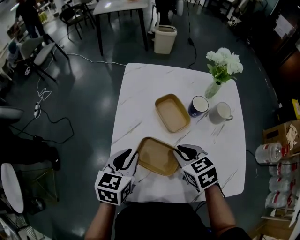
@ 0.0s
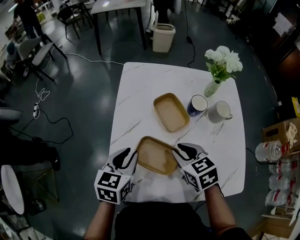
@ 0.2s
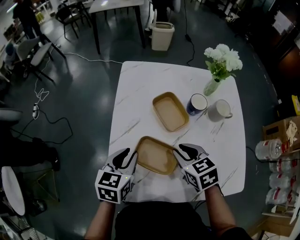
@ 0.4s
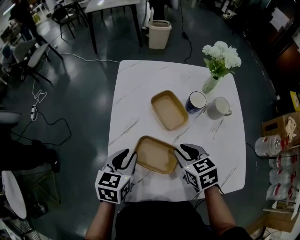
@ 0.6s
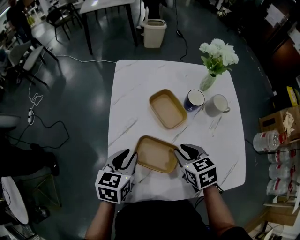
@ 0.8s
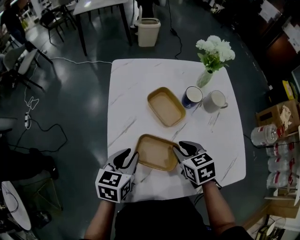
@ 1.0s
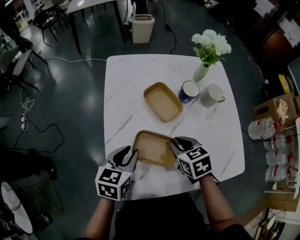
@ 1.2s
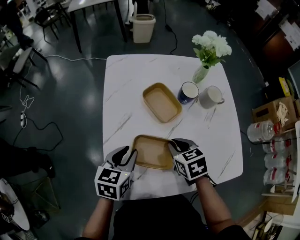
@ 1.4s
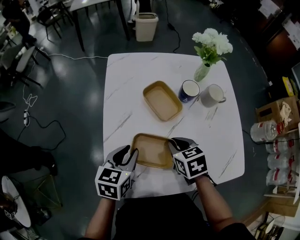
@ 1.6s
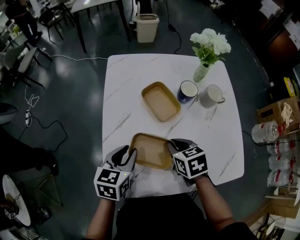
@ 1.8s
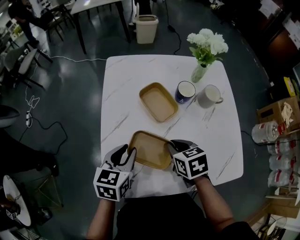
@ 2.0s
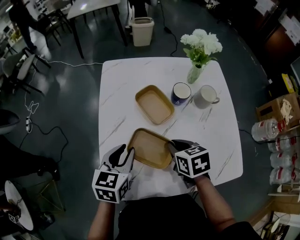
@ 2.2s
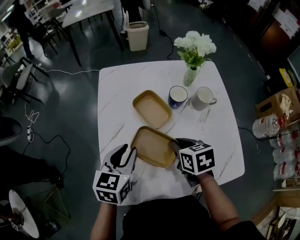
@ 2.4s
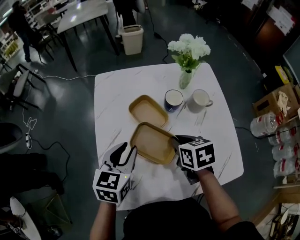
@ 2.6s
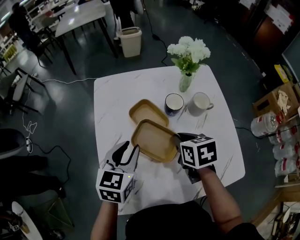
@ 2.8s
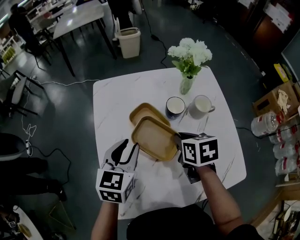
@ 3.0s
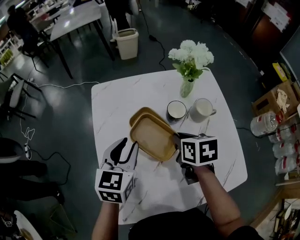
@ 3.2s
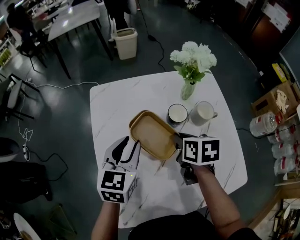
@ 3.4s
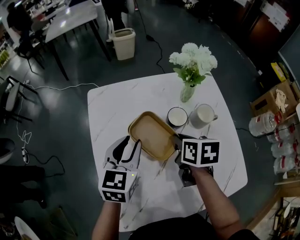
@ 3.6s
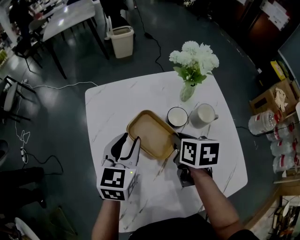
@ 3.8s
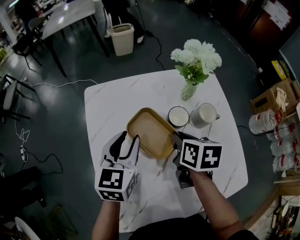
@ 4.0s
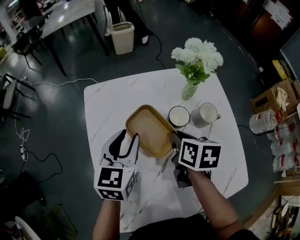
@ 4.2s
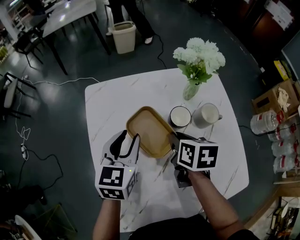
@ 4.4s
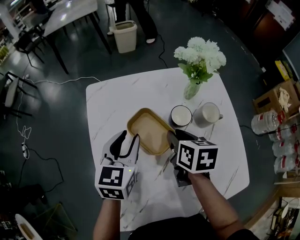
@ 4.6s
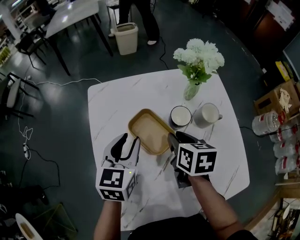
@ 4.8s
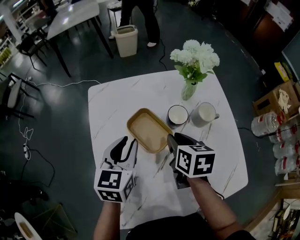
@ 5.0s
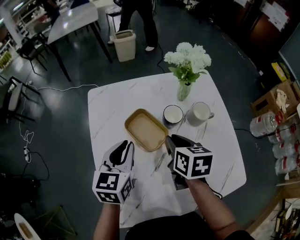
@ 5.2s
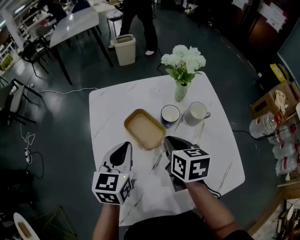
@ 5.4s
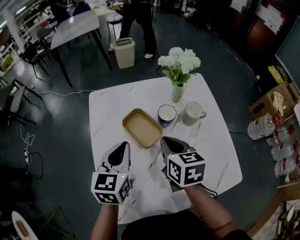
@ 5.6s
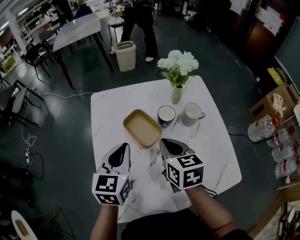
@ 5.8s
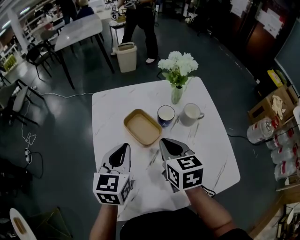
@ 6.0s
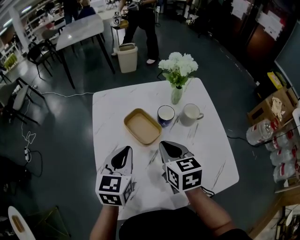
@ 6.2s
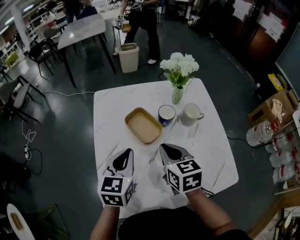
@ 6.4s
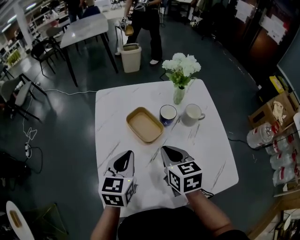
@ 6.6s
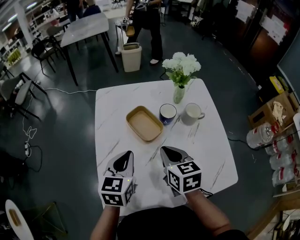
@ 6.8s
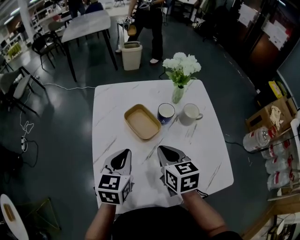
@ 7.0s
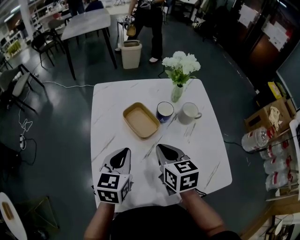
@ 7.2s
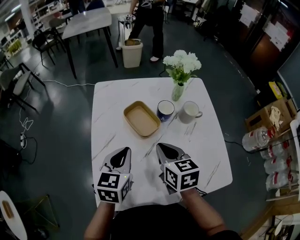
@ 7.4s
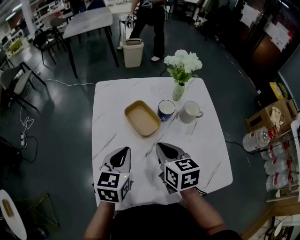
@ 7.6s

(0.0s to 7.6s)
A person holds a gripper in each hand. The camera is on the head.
0.0s - 1.6s: The grippers move only a little.
1.6s - 3.0s: The left gripper travels forward and upward by some 15 cm. Meanwhile the right gripper travels forward, to the right and upward by approximately 10 cm, and turns by approximately 20 degrees.
3.0s - 4.6s: The grippers both shift forward by about 10 cm.
4.6s - 6.0s: Both grippers travel together backward and upward, approximately 10 cm. The left gripper closes up, while the right gripper swivels roughly 20 degrees, and closes up.
6.0s - 7.6s: The left gripper shifts by roughly 5 cm.

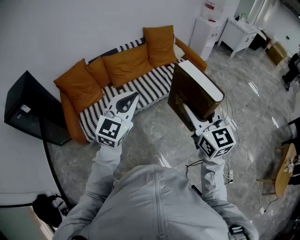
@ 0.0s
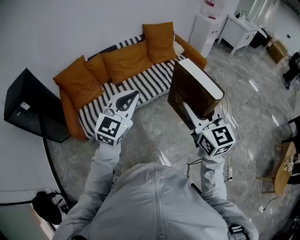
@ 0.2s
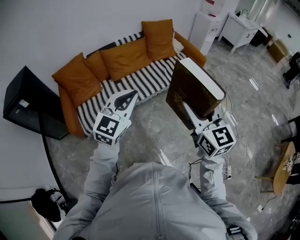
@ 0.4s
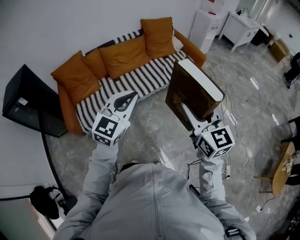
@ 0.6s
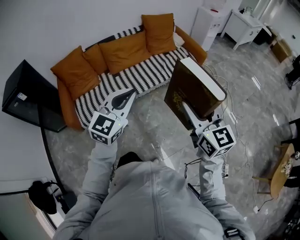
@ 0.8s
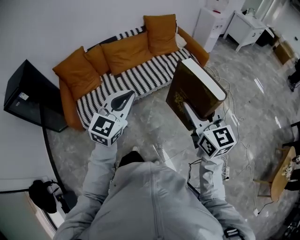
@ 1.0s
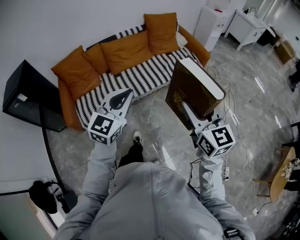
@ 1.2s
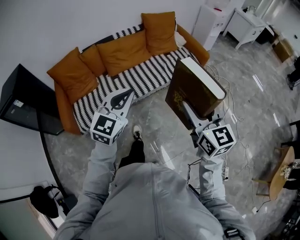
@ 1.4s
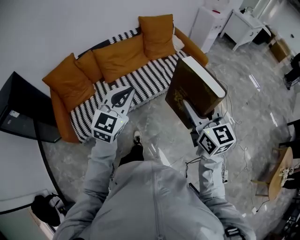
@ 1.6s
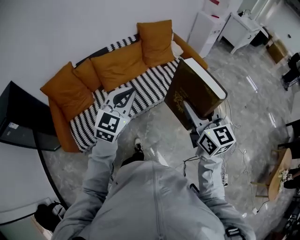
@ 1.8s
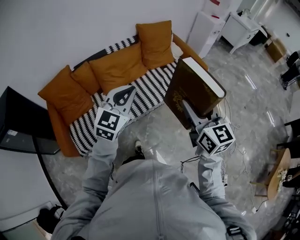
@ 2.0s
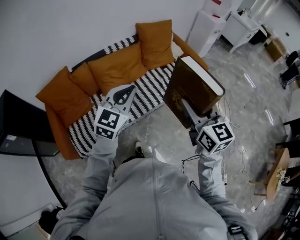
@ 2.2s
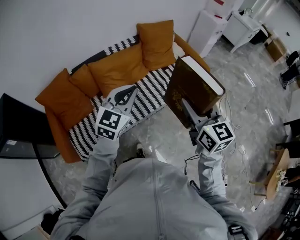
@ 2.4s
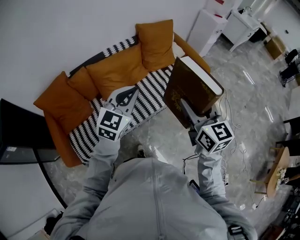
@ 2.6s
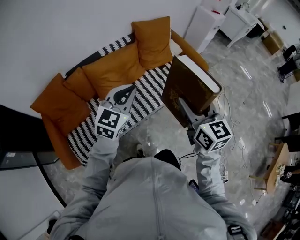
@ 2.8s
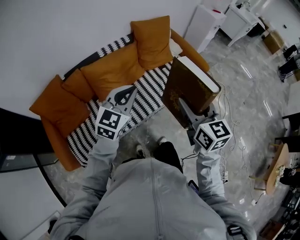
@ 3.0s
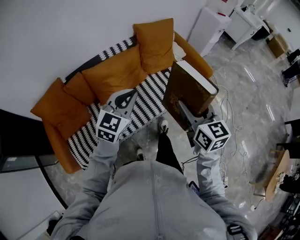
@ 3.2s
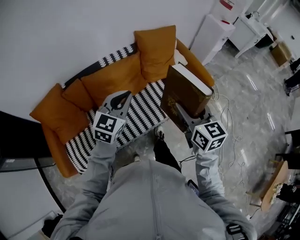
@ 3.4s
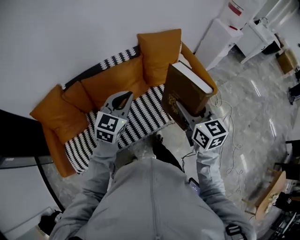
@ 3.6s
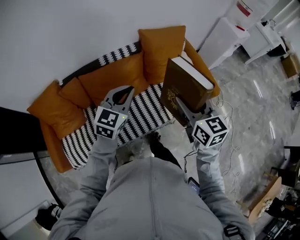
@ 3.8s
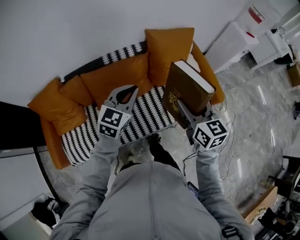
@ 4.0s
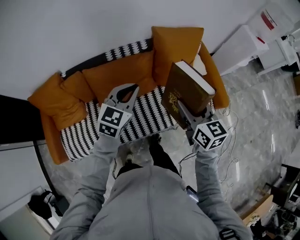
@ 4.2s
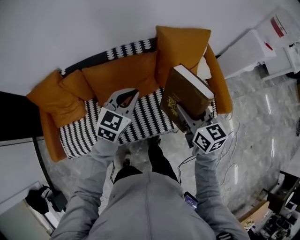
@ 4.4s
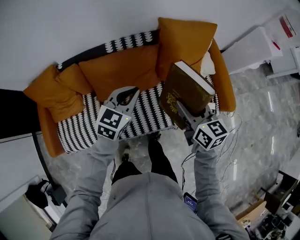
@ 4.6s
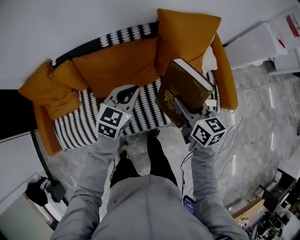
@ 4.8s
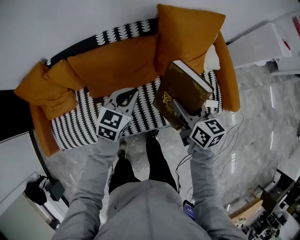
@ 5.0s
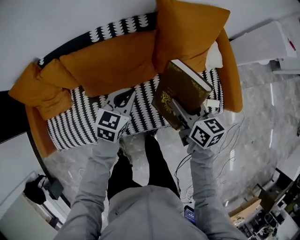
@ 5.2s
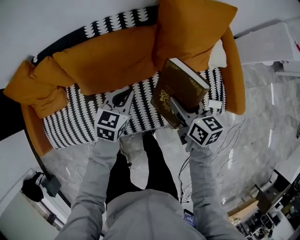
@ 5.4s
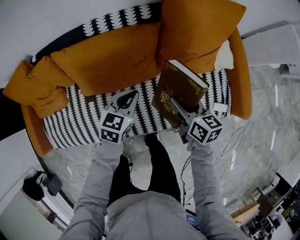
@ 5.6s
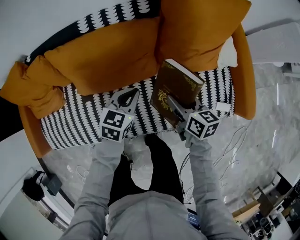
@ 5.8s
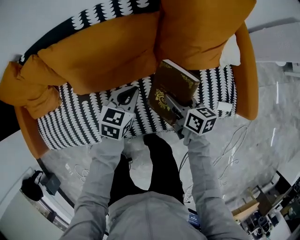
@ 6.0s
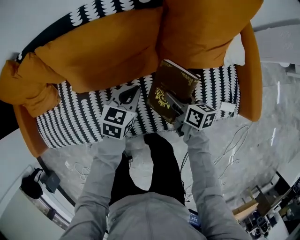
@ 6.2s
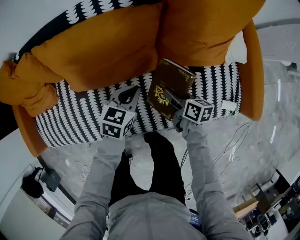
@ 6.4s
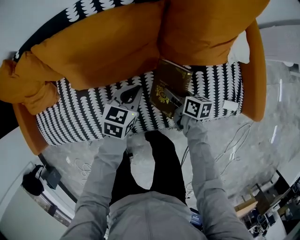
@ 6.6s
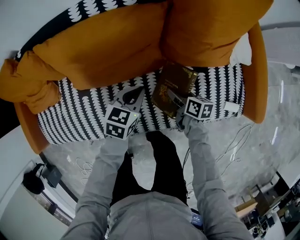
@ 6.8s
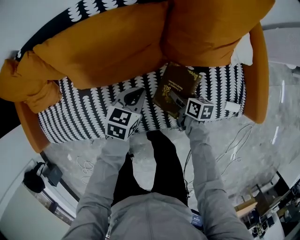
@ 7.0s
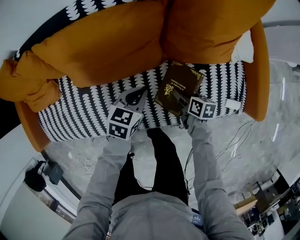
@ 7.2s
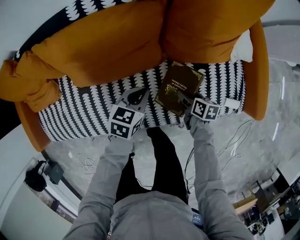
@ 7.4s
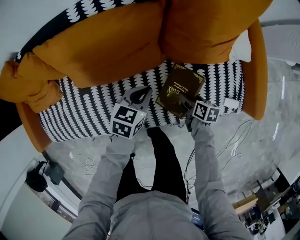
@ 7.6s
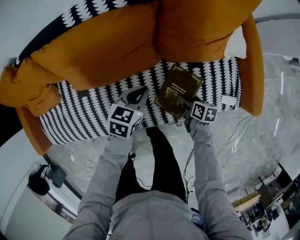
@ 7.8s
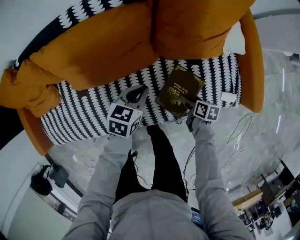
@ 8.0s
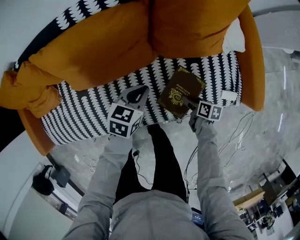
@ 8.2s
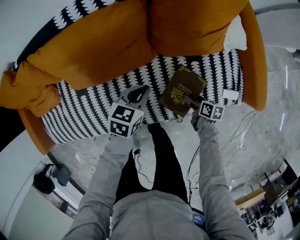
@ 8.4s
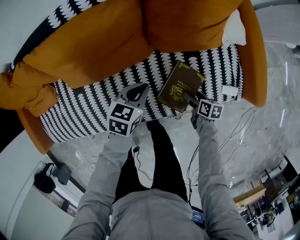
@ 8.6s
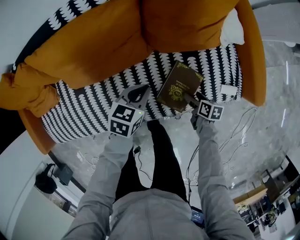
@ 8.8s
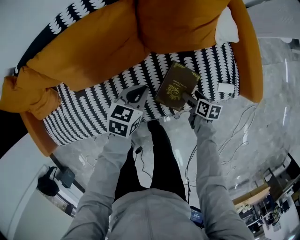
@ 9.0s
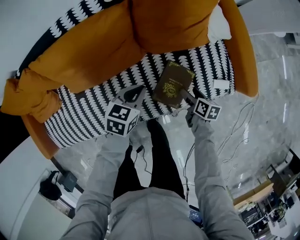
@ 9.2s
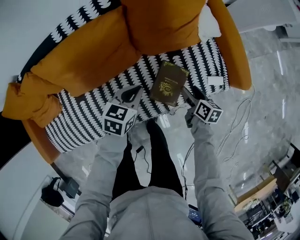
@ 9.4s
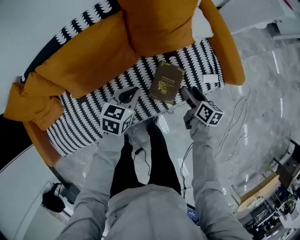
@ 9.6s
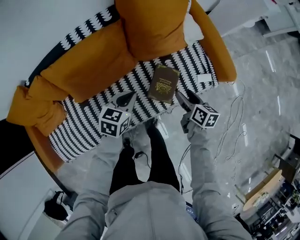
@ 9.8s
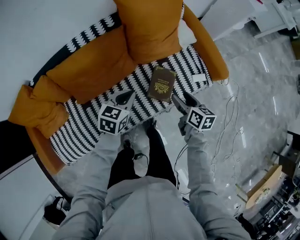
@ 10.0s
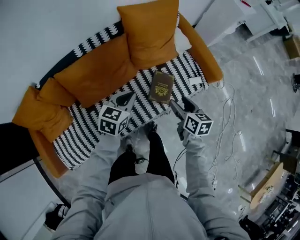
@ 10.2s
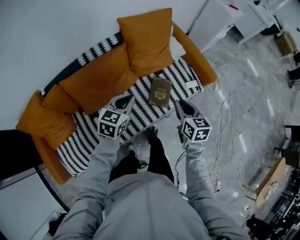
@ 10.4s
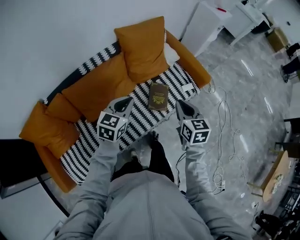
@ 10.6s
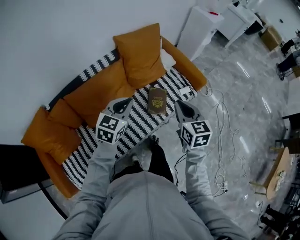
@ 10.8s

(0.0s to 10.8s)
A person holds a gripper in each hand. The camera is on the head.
0.0s - 1.6s: The right gripper moves forward, roughly 10 cm, while the left gripper goes some 15 cm forward and downward.
1.6s - 3.0s: Both grippers travel together forward, approximately 25 cm.
3.0s - 4.6s: Both grippers travel together forward and downward, approximately 35 cm. The left gripper turns by roughly 20 degrees, while the right gripper changes its angle by roughly 30 degrees.
4.6s - 6.2s: The two grippers go about 35 cm downward. The right gripper turns by approximately 30 degrees, while the left gripper turns by some 20 degrees.
6.2s - 7.8s: The right gripper shifts approximately 15 cm downward, to the right and backward, and rotates roughly 20 degrees.
7.8s - 9.2s: Both grippers travel together to the right, some 5 cm.
9.2s - 10.8s: Both grippers move upward, some 40 cm. The right gripper rotates some 50 degrees, and closes its fingers. The left gripper swivels roughly 40 degrees.

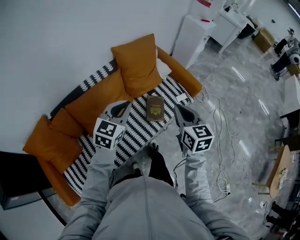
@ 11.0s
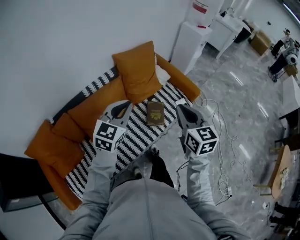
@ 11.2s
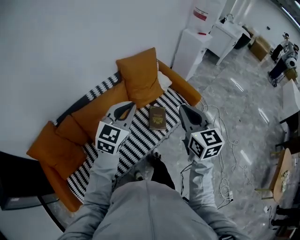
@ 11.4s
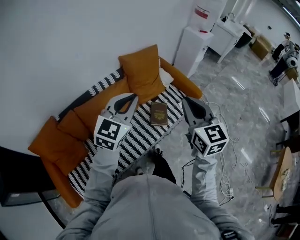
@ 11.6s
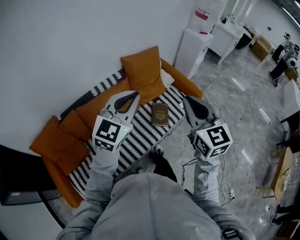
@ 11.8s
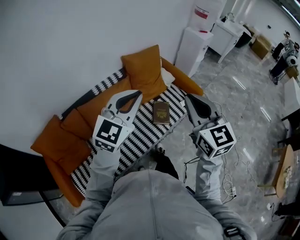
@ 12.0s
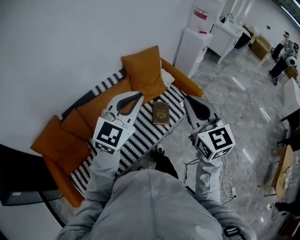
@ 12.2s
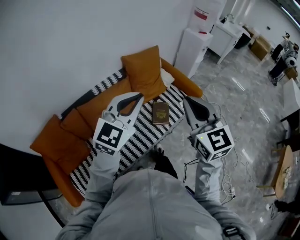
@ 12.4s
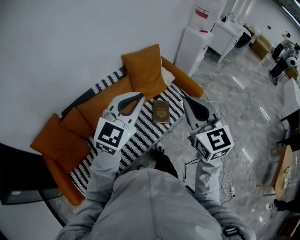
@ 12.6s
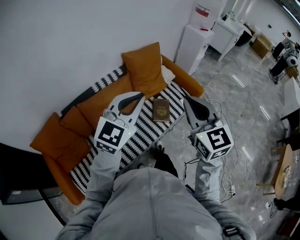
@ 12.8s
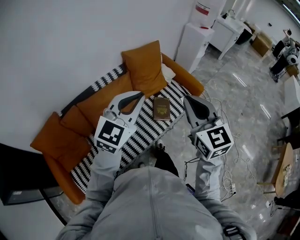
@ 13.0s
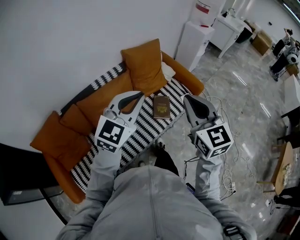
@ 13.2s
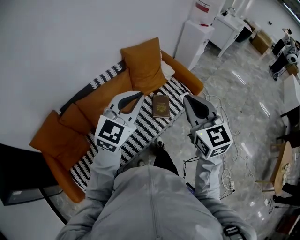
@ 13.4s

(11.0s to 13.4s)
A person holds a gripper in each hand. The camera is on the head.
11.0s - 12.2s: The two grippers go roughly 20 cm upward and backward. The left gripper changes its angle by some 20 degrees. The right gripper turns by some 20 degrees.
12.2s - 13.4s: The grippers make only small movements.

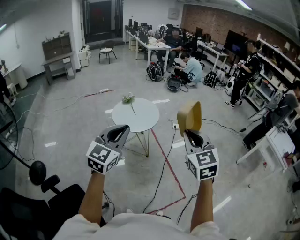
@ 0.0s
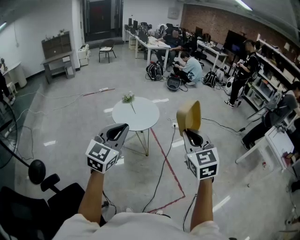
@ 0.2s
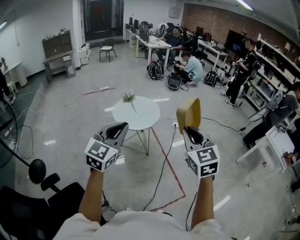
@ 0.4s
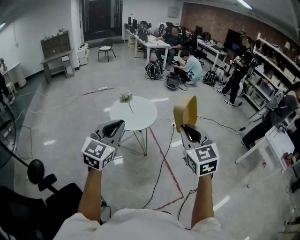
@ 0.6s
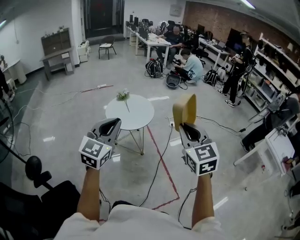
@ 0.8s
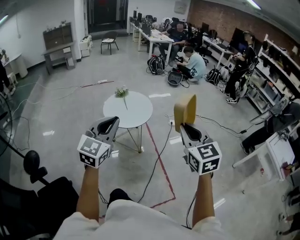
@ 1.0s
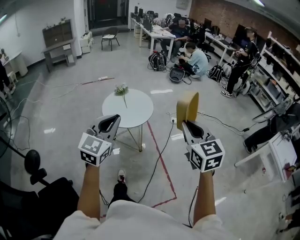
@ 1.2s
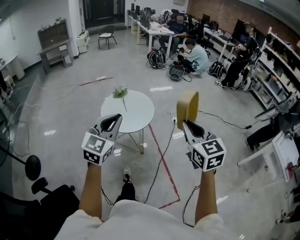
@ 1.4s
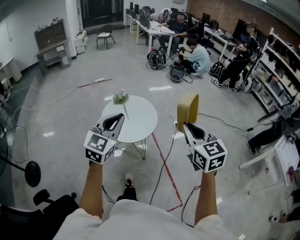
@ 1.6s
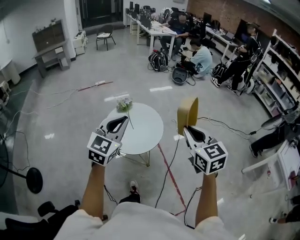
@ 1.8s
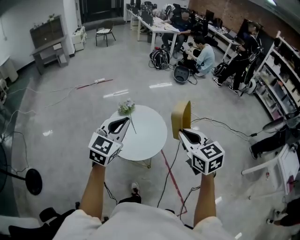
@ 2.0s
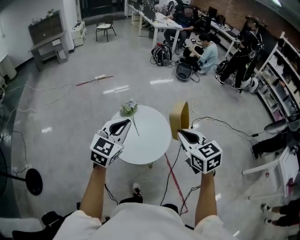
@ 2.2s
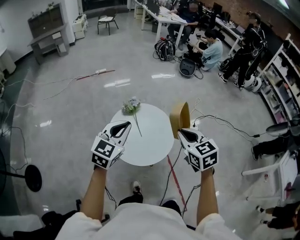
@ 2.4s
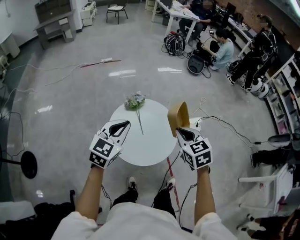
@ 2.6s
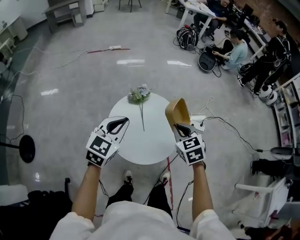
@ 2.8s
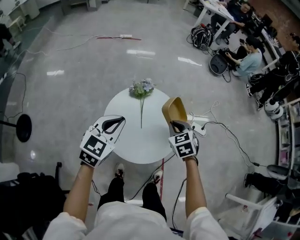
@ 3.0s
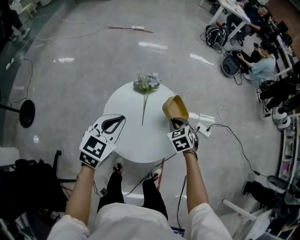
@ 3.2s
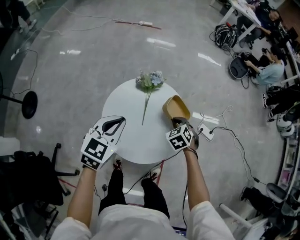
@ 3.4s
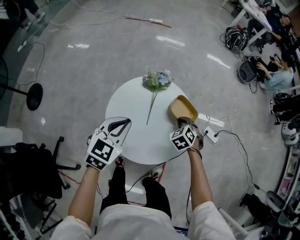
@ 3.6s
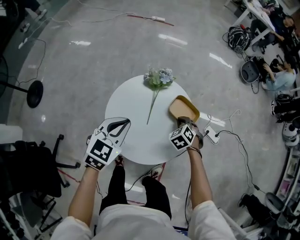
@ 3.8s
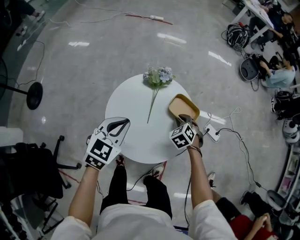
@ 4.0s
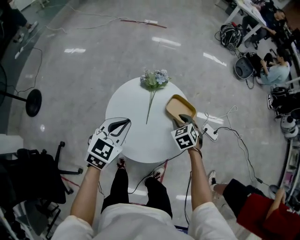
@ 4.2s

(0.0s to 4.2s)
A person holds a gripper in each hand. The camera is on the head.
0.0s - 1.4s: The grippers both shift forward by about 20 cm.
1.4s - 2.8s: The pair of grippers is taken forward and to the left, some 50 cm. The two grippers go about 20 cm downward. The right gripper changes its angle by about 30 degrees.
2.8s - 4.2s: The right gripper travels downward and forward by approximately 25 cm, changes its angle by roughly 20 degrees, and opens. The left gripper travels downward by some 10 cm.
